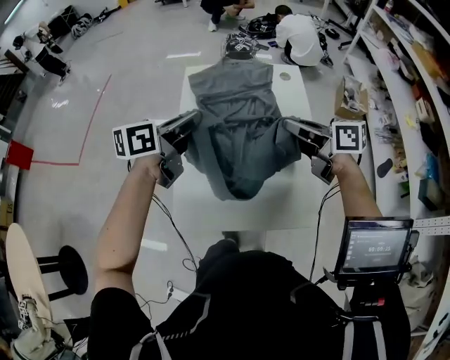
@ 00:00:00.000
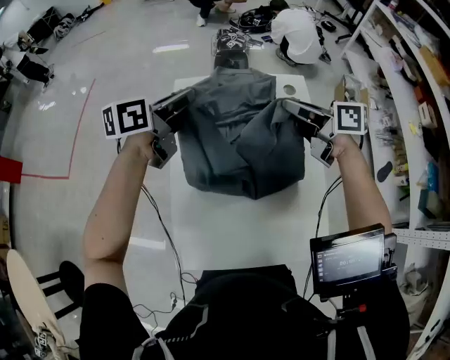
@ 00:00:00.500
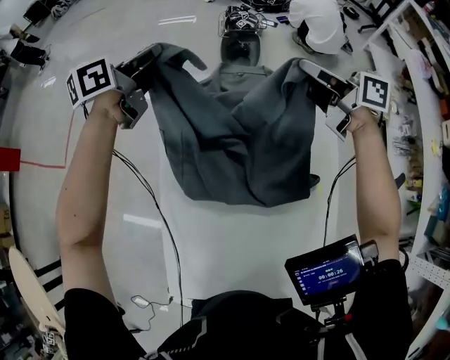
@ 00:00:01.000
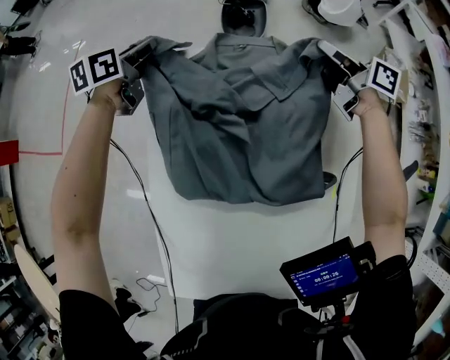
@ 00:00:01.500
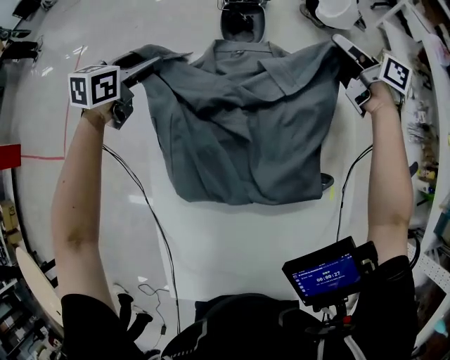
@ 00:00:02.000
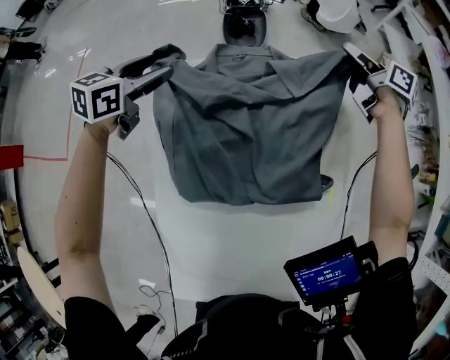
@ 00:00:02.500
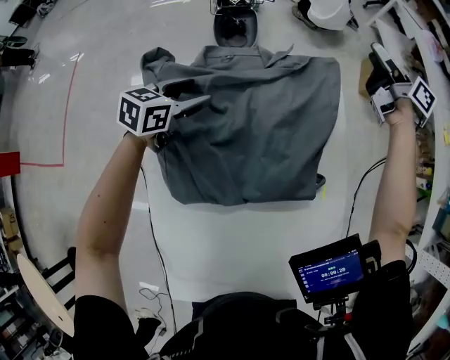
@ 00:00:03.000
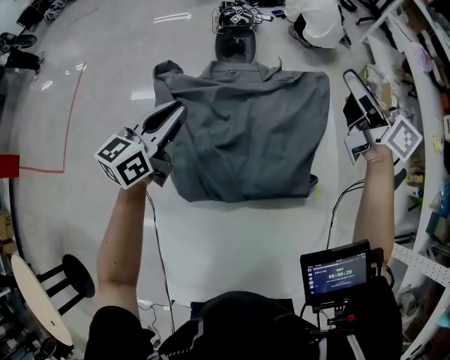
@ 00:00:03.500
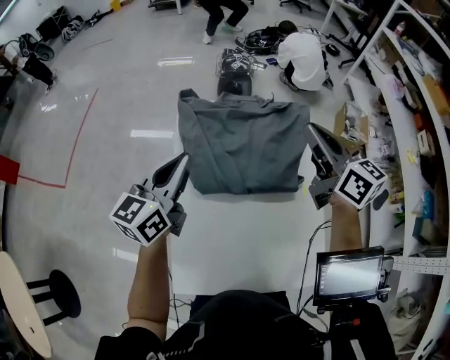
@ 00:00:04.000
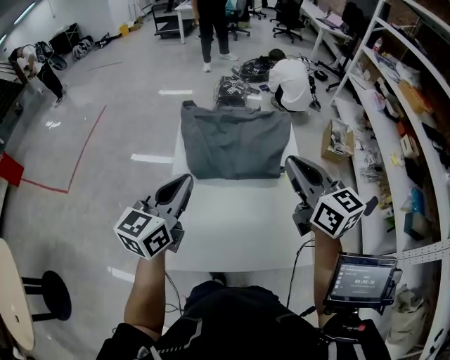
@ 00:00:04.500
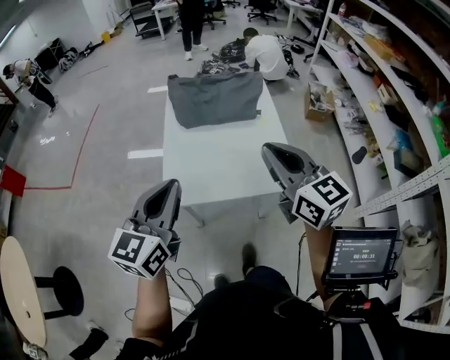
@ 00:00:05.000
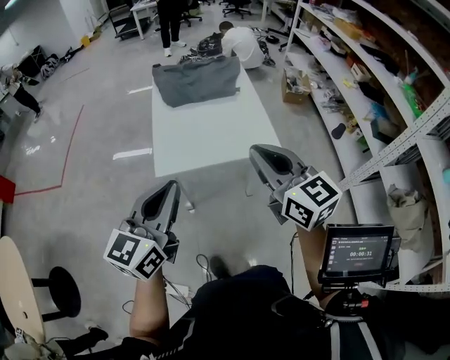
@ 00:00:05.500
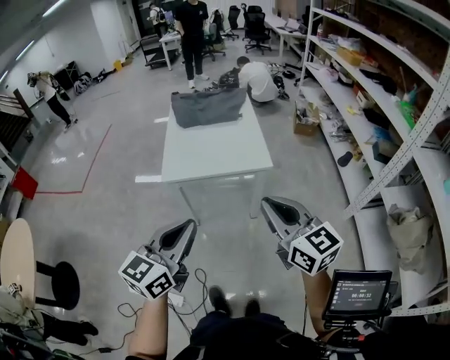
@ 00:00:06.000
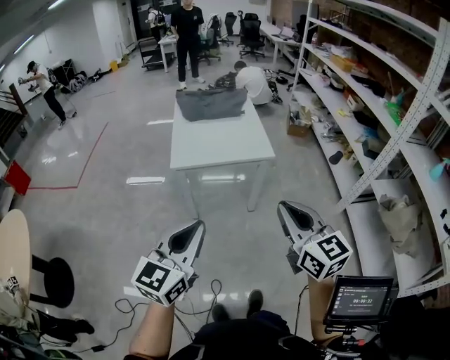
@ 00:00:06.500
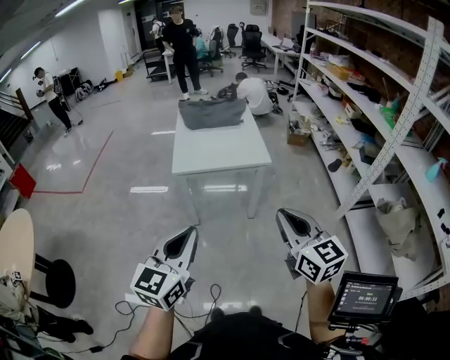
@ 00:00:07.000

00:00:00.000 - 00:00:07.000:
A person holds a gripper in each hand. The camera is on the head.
00:00:00.000 - 00:00:02.000: The pair of grippers is taken forward, about 50 cm. The left gripper is displaced downward by approximately 20 cm, swivels approximately 30 degrees, and opens up. Meanwhile the right gripper changes its angle by approximately 30 degrees, and opens its fingers.
00:00:02.000 - 00:00:03.500: The right gripper moves upward and backward, some 20 cm, and rotates approximately 30 degrees. Meanwhile the left gripper heads backward, to the right and upward, covering some 15 cm, rotates some 30 degrees, and closes its fingers.
00:00:03.500 - 00:00:05.000: The two grippers travel together, backward, approximately 70 cm. The left gripper swivels about 20 degrees. Meanwhile the right gripper turns by some 30 degrees, and closes.
00:00:05.000 - 00:00:07.000: The two grippers travel together, backward, about 50 cm.

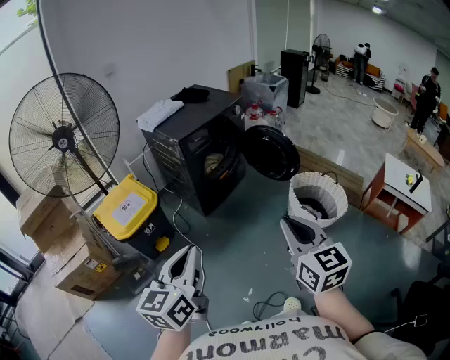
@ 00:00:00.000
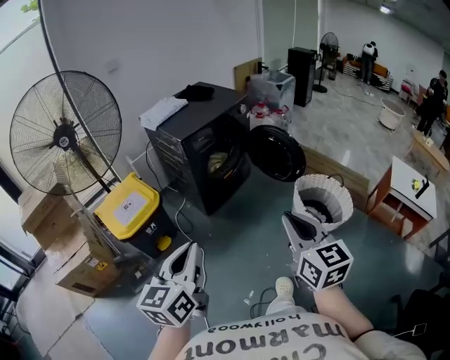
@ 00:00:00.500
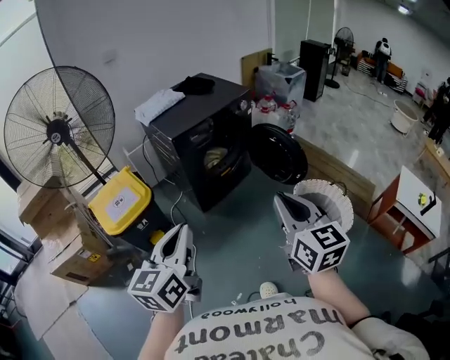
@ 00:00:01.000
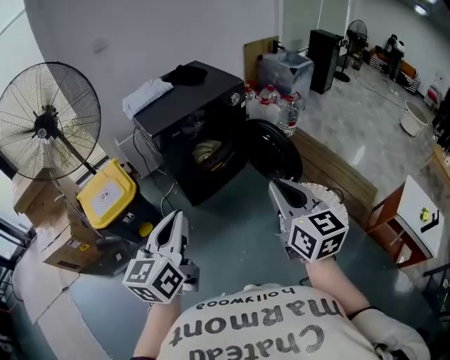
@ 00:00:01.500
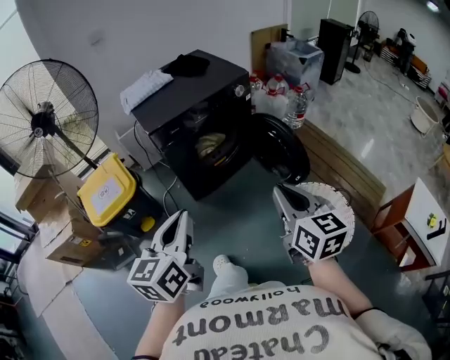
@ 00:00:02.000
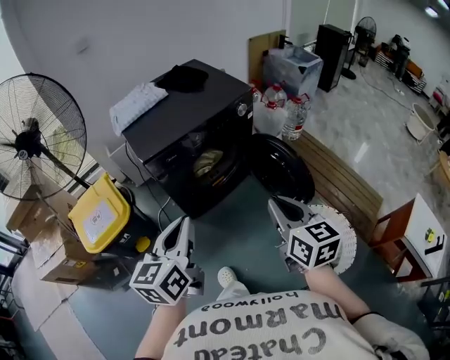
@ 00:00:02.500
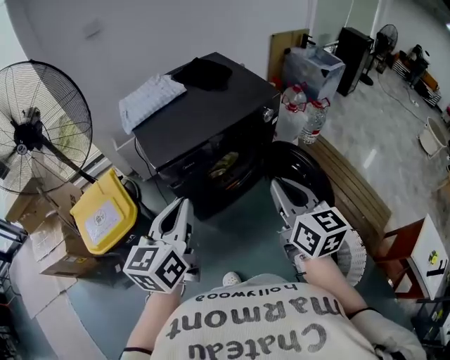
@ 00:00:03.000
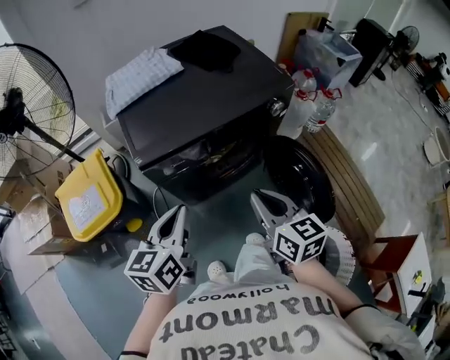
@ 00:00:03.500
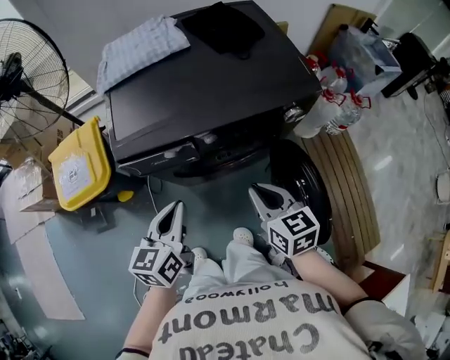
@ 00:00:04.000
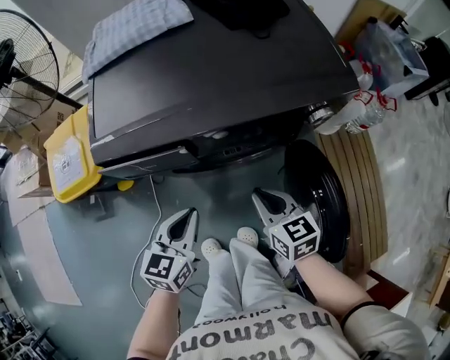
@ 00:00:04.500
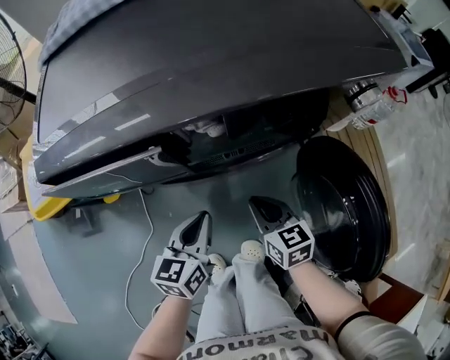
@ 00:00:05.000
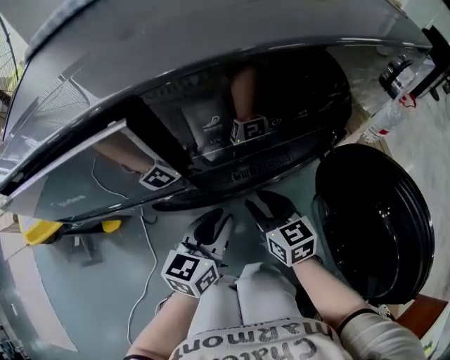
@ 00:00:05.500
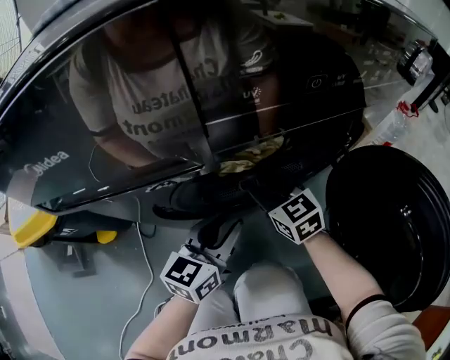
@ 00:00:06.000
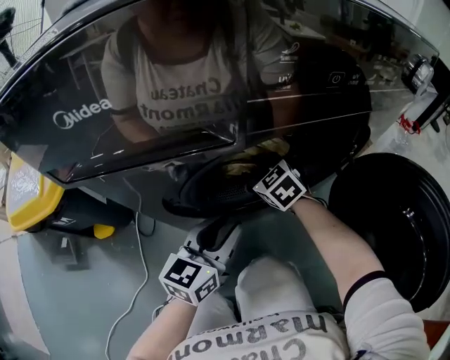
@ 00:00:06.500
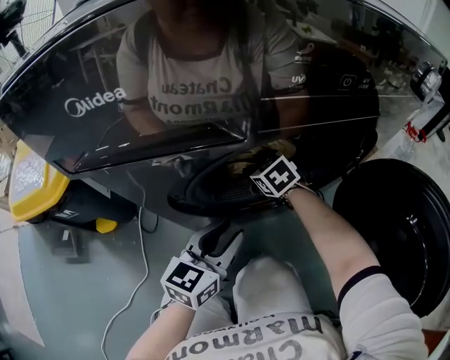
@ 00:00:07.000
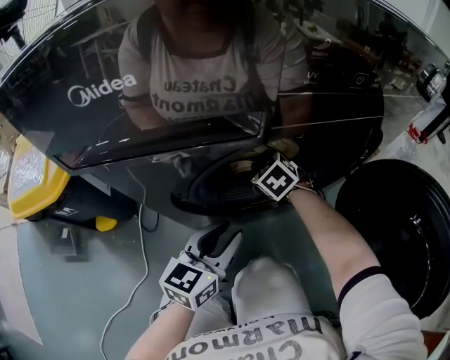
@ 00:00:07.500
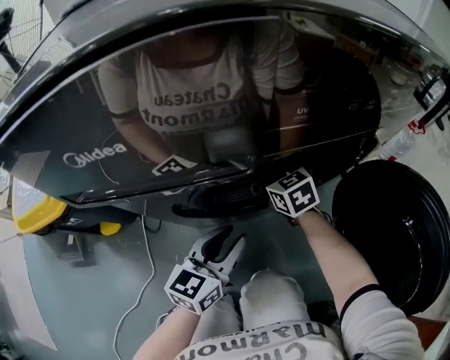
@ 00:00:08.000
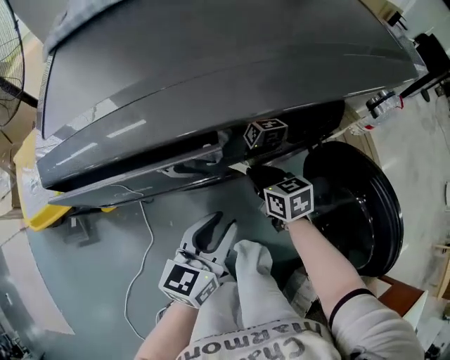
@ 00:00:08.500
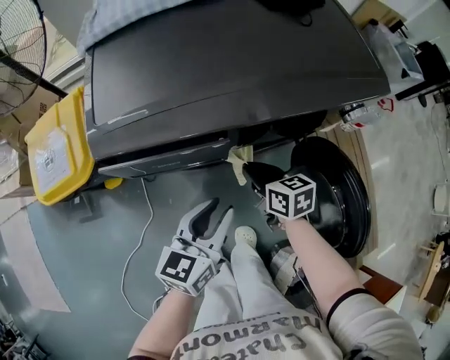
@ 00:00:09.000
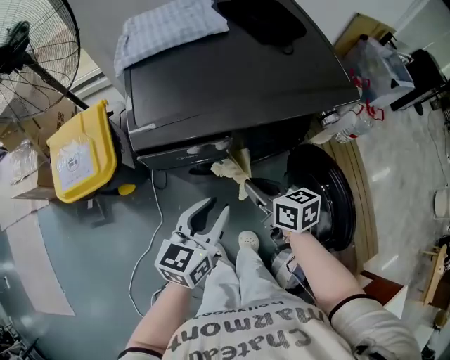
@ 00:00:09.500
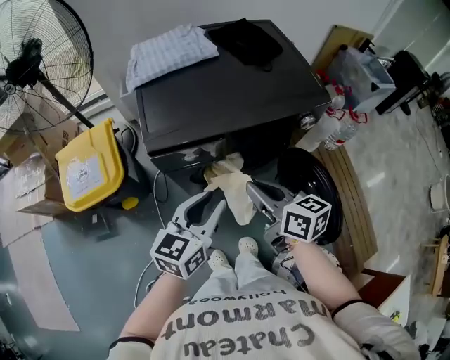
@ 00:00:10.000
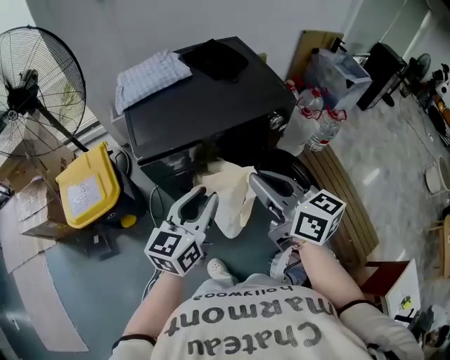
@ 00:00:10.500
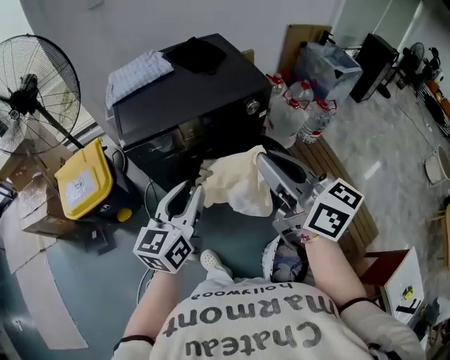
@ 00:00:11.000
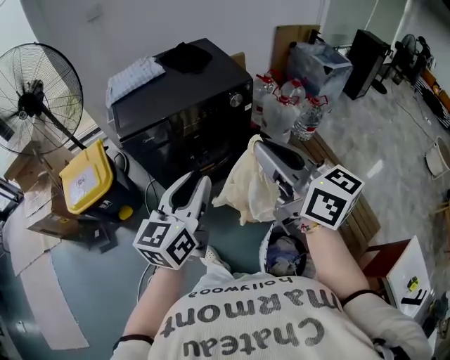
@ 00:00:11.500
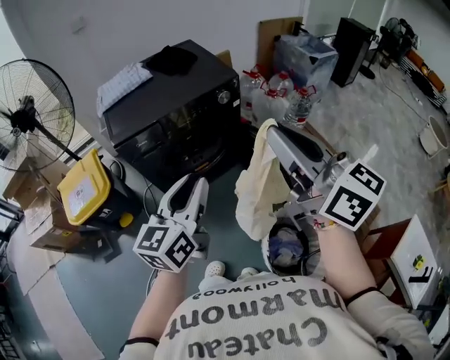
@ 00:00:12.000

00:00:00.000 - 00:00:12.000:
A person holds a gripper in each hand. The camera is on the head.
00:00:00.000 - 00:00:02.000: Both grippers travel together forward and to the right, about 35 cm.
00:00:02.000 - 00:00:04.000: The two grippers go roughly 40 cm forward and downward. The left gripper changes its angle by roughly 20 degrees. The right gripper swivels about 30 degrees.
00:00:04.000 - 00:00:06.000: The right gripper heads downward and forward, covering about 40 cm, turns by roughly 20 degrees, and opens. Meanwhile the left gripper is displaced downward by about 35 cm, swivels roughly 20 degrees, and opens its fingers.
00:00:06.000 - 00:00:08.000: The right gripper closes its fingers.
00:00:08.000 - 00:00:10.000: The left gripper moves upward, roughly 40 cm, while the right gripper travels upward and backward by about 50 cm, and rotates about 40 degrees.
00:00:10.000 - 00:00:12.000: The right gripper goes some 40 cm upward, backward and to the right, and swivels about 30 degrees; the left gripper moves backward, upward and to the right, about 25 cm.

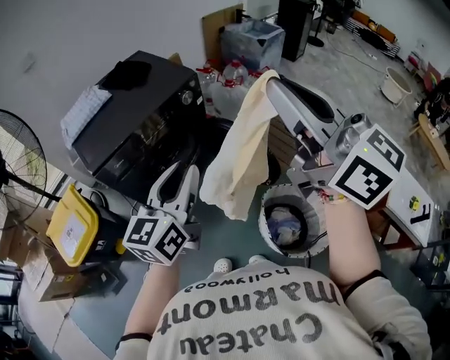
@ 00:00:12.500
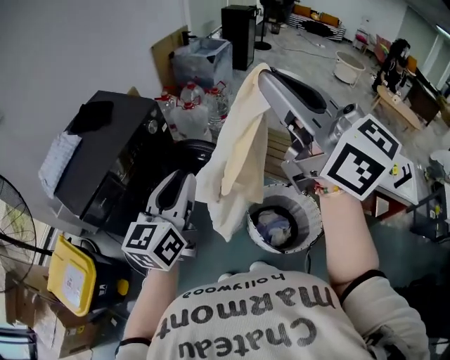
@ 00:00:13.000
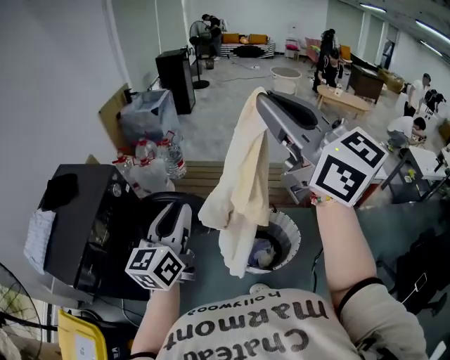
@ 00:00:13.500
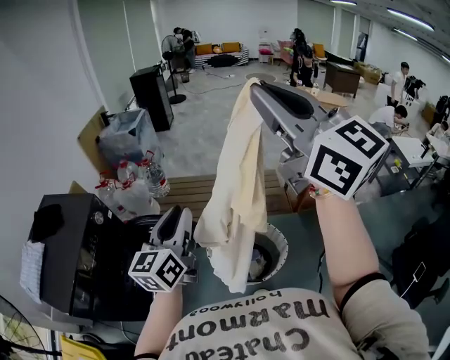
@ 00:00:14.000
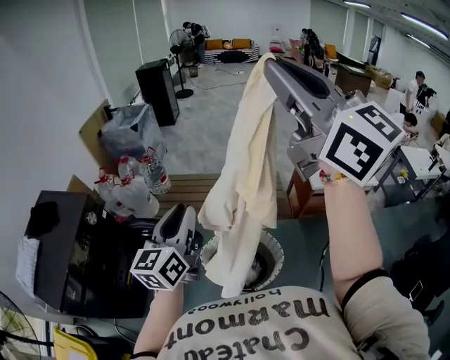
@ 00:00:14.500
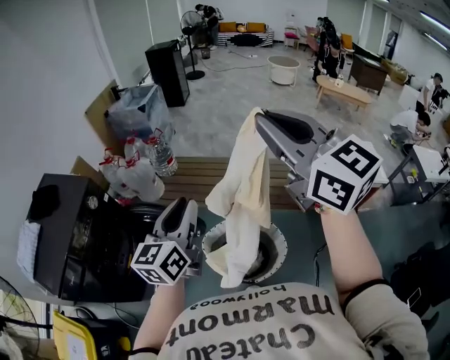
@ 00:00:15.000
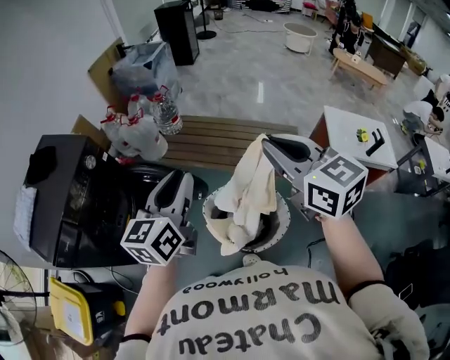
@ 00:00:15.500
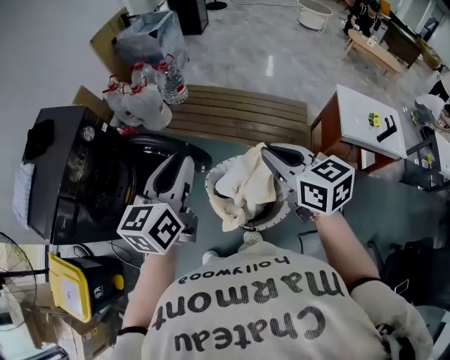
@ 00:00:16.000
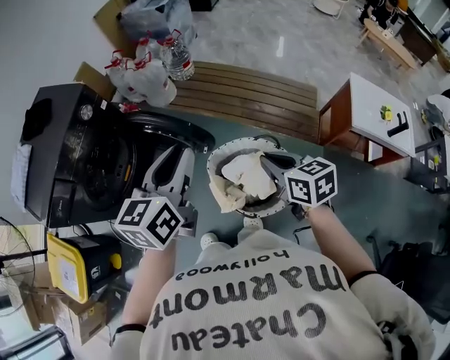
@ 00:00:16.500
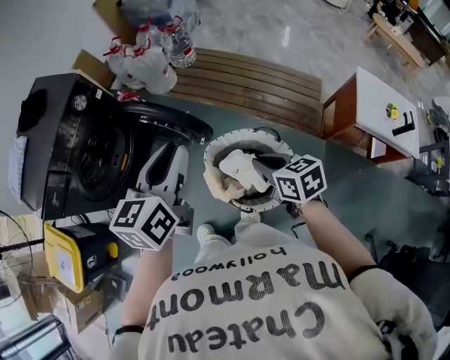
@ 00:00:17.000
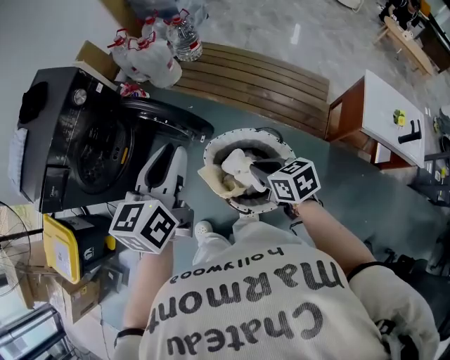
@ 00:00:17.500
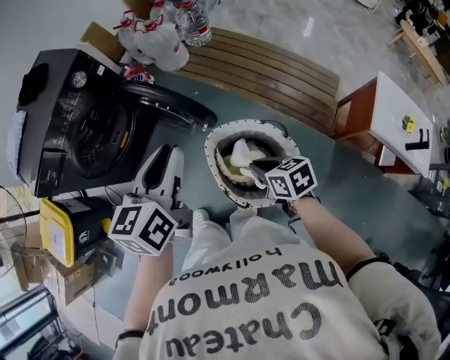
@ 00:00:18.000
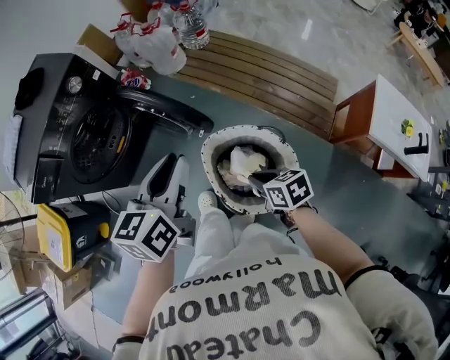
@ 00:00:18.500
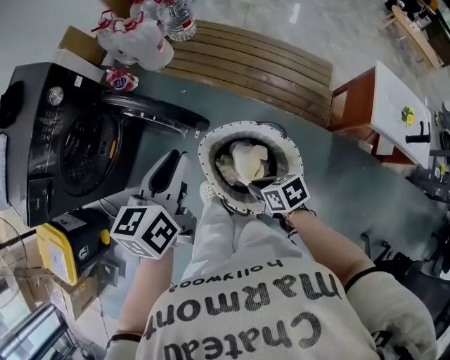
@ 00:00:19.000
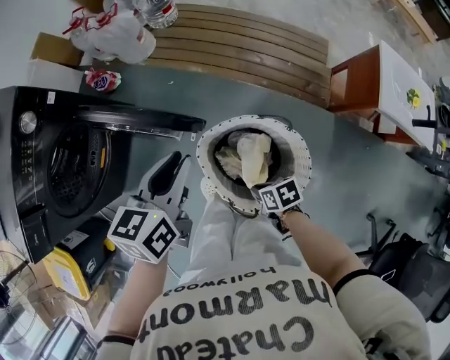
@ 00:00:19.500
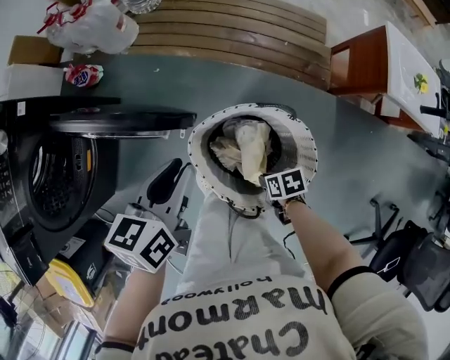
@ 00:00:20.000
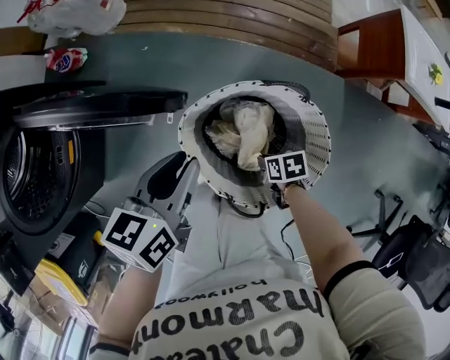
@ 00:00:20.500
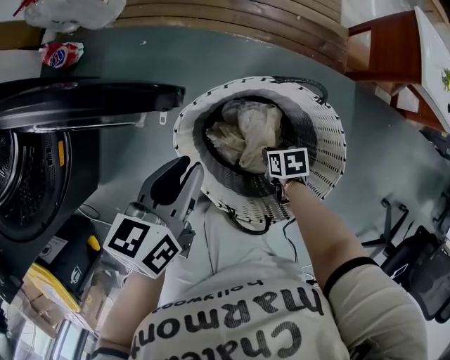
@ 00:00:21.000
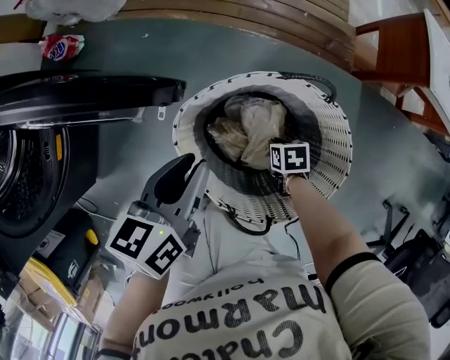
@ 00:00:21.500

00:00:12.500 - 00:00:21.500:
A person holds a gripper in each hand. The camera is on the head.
00:00:12.500 - 00:00:14.500: The left gripper shifts by approximately 30 cm, and turns by approximately 30 degrees. The right gripper changes place by about 40 cm, and changes its angle by approximately 50 degrees.
00:00:14.500 - 00:00:17.000: The left gripper moves downward, some 15 cm, and changes its angle by approximately 20 degrees. The right gripper moves downward, about 60 cm, and points its fingers roughly 60 degrees further downward.
00:00:17.000 - 00:00:19.500: The right gripper is displaced downward by some 25 cm, and changes its angle by about 40 degrees. Meanwhile the left gripper moves downward and forward, some 20 cm.
00:00:19.500 - 00:00:21.500: The grippers both shift downward by about 25 cm. The right gripper rotates approximately 20 degrees.
